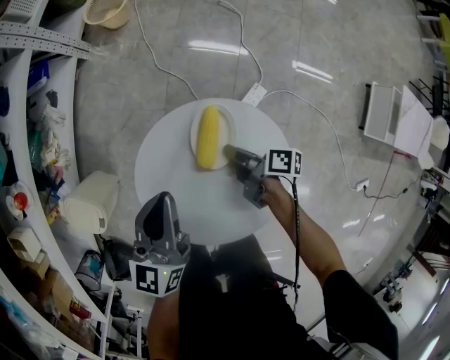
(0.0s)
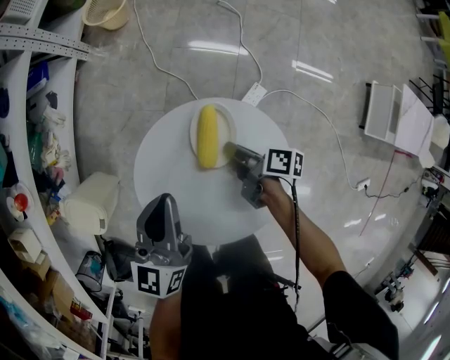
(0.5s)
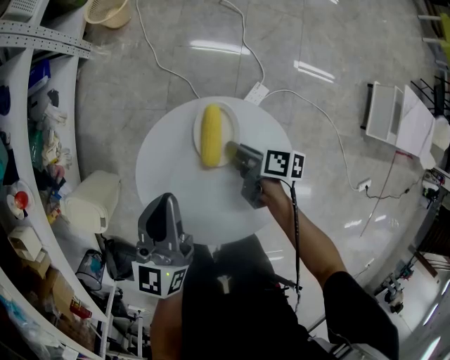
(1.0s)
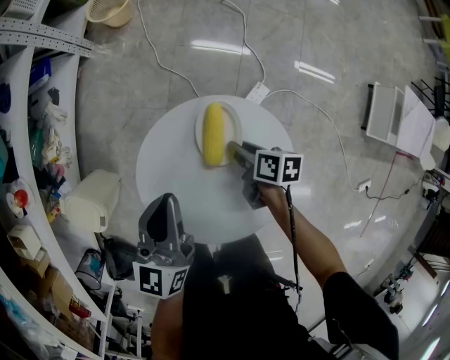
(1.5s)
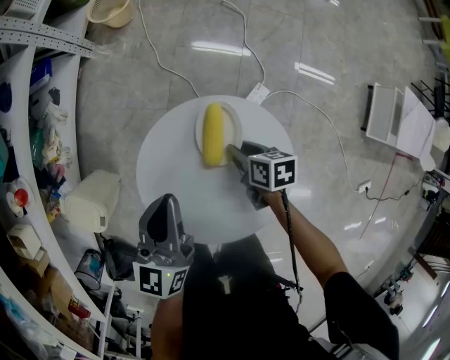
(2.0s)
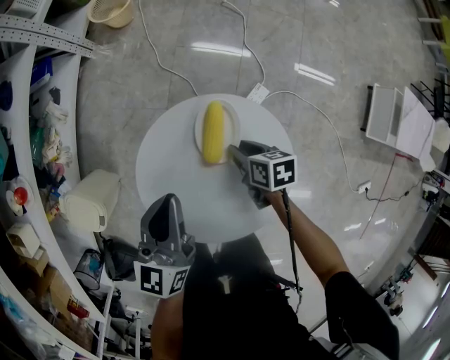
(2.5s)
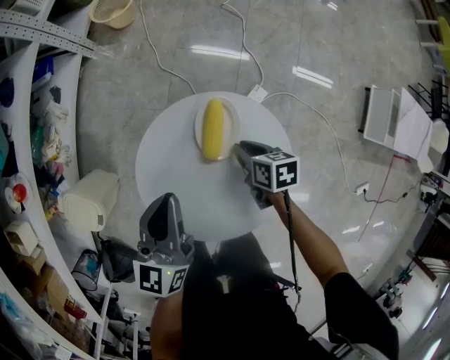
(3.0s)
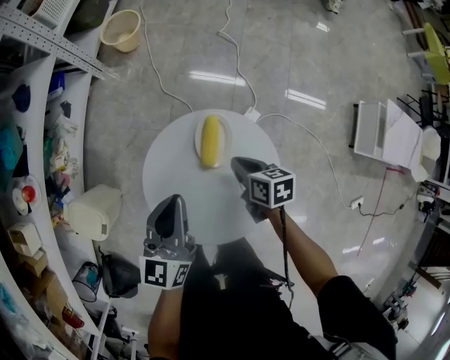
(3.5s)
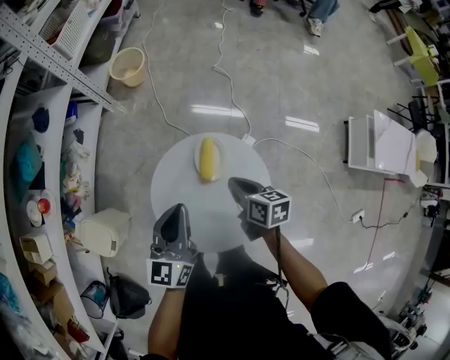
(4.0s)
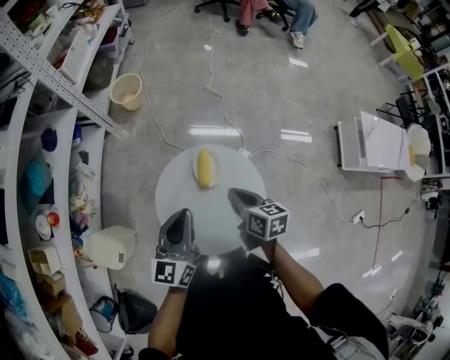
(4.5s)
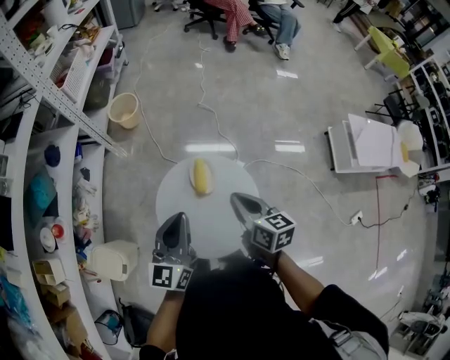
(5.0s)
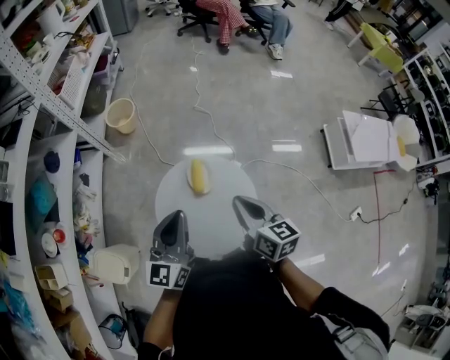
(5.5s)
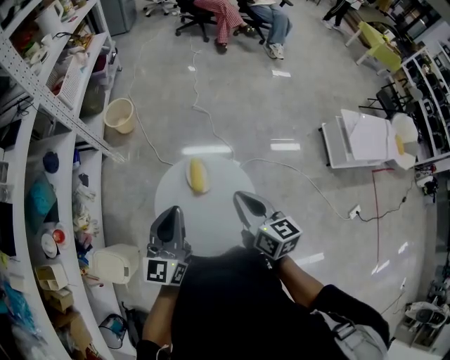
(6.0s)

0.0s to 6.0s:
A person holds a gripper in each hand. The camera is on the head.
2.0s to 4.0s: The left gripper heads upward, covering some 10 cm.
4.0s to 6.0s: The left gripper is displaced upward by approximately 10 cm.

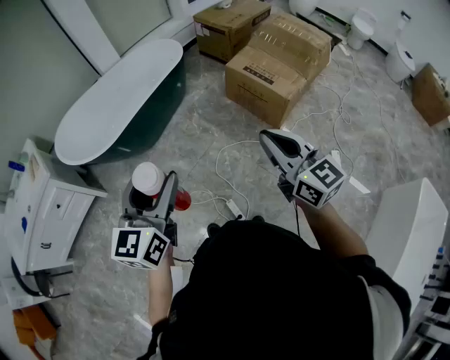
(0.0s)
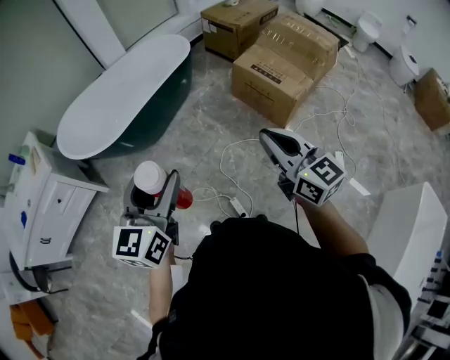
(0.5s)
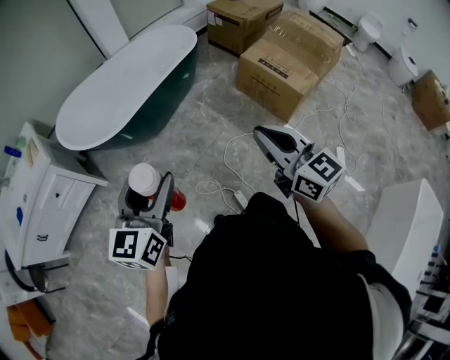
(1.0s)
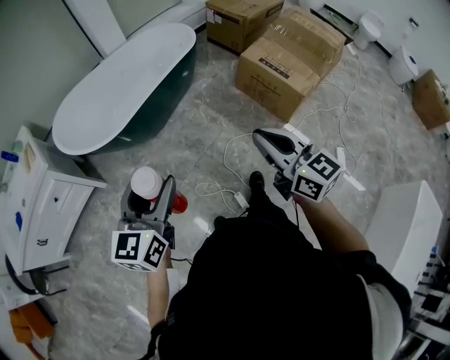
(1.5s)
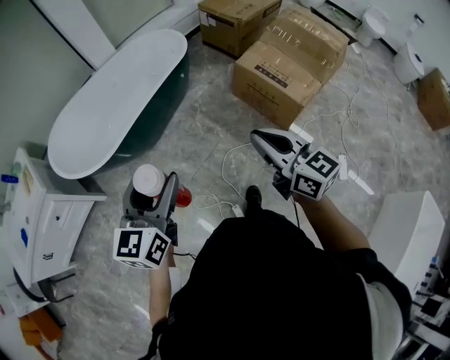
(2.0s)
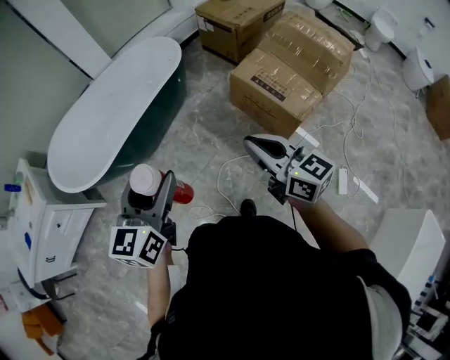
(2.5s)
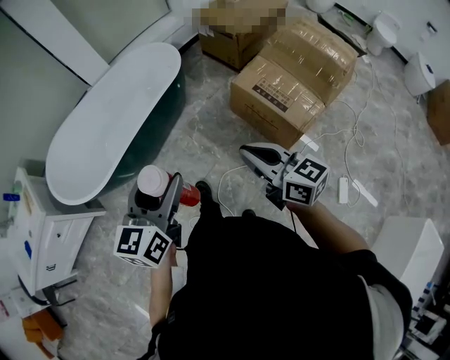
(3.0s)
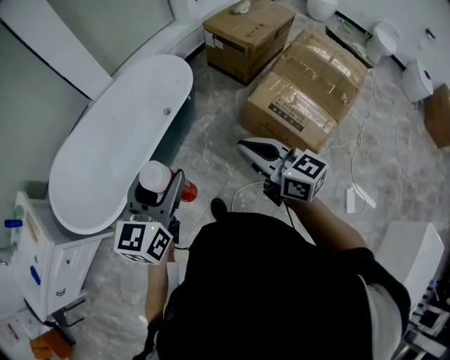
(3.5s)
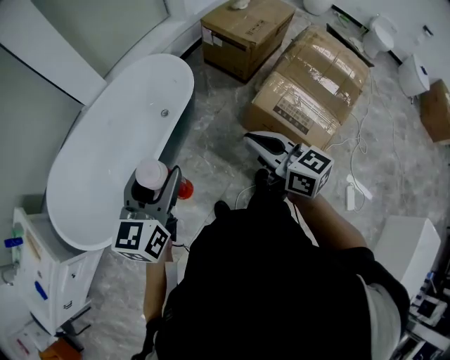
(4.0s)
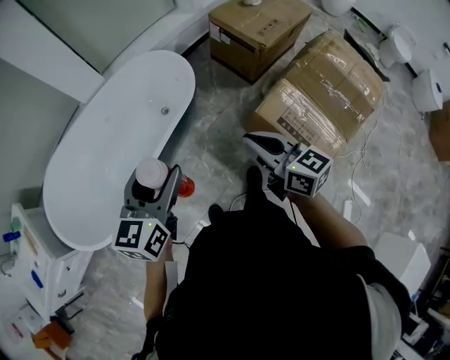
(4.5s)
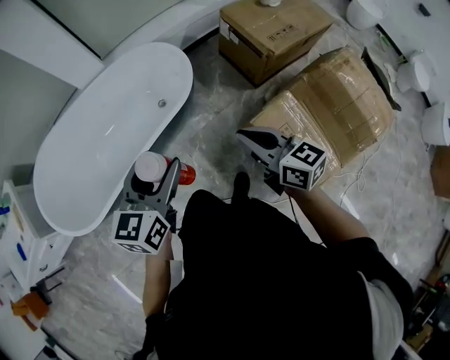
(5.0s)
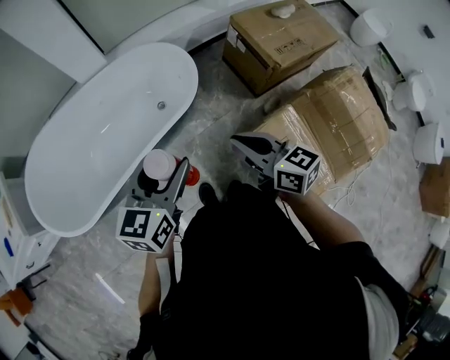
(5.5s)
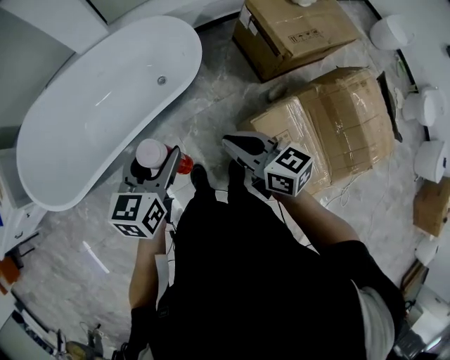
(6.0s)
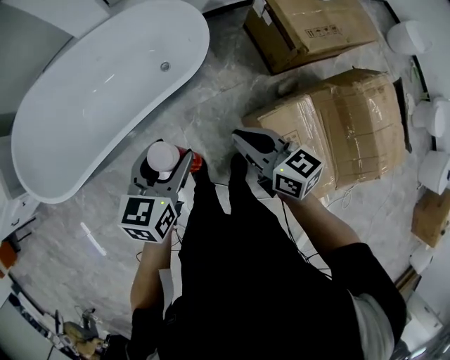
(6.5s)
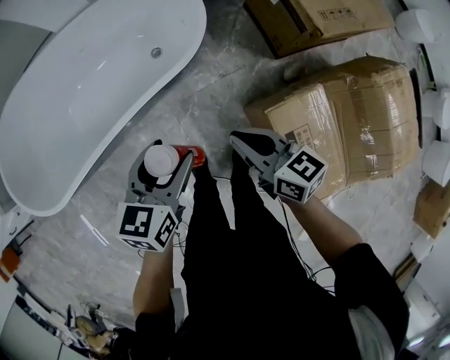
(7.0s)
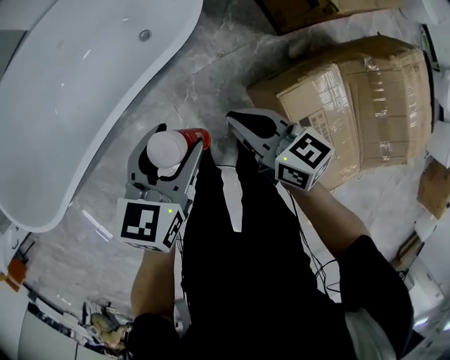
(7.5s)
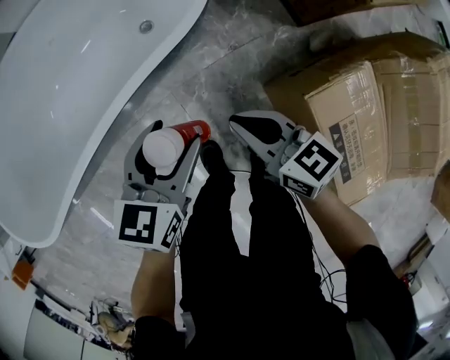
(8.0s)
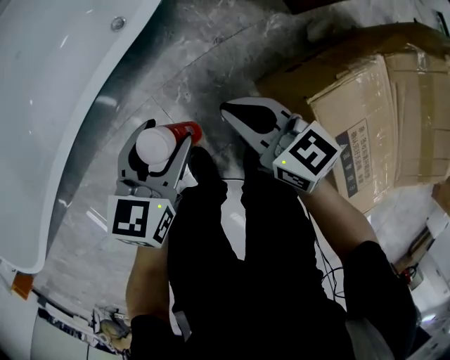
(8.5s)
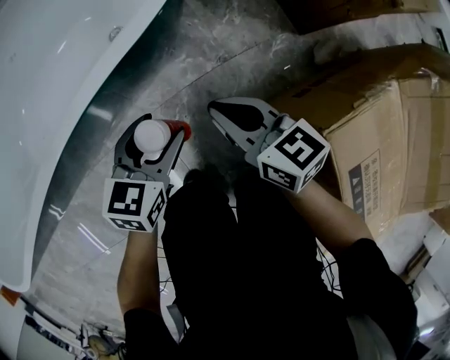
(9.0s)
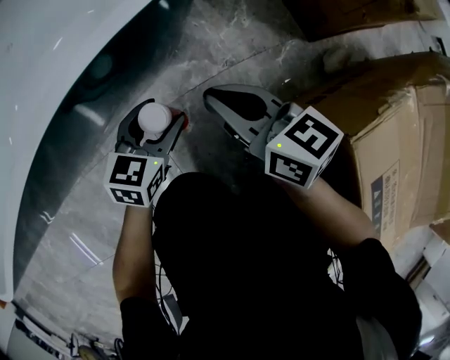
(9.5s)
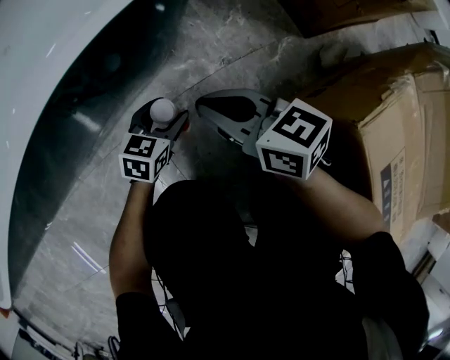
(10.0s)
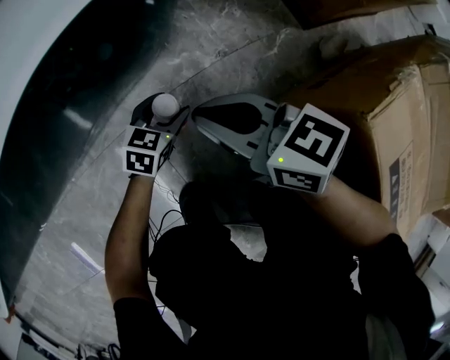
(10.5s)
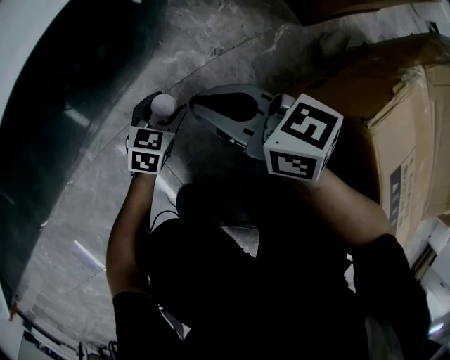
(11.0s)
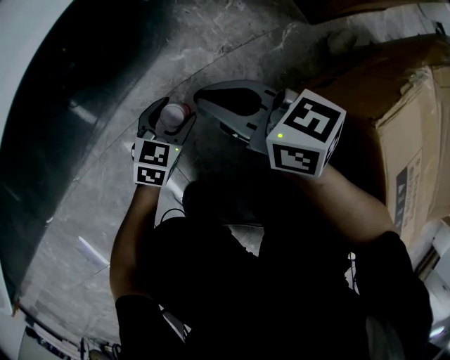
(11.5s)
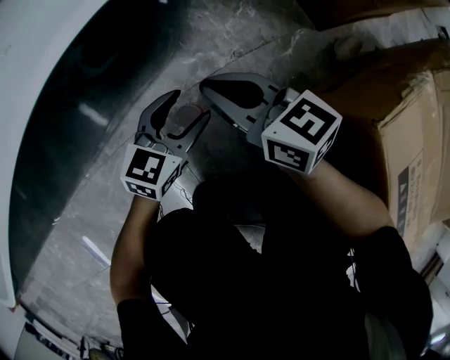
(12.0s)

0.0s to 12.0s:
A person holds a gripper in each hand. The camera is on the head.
0.0s to 2.0s: Both grippers travel together forward, some 20 cm.
2.0s to 4.0s: Both grippers travel together forward, roughly 40 cm.
4.0s to 6.0s: The left gripper heads to the right, forward and downward, covering some 30 cm, and swivels approximately 30 degrees; the right gripper heads forward, to the right and downward, covering about 25 cm, and turns by roughly 30 degrees.
6.0s to 8.0s: Both grippers travel together downward, about 35 cm.
8.0s to 10.0s: The left gripper moves downward, approximately 40 cm. Meanwhile the right gripper shifts approximately 25 cm downward.
10.0s to 12.0s: The left gripper heads upward, covering roughly 5 cm.

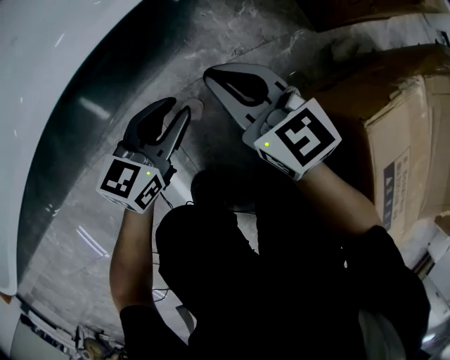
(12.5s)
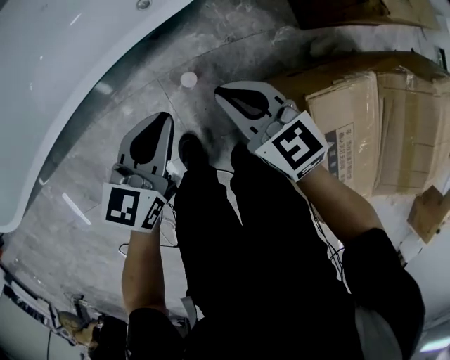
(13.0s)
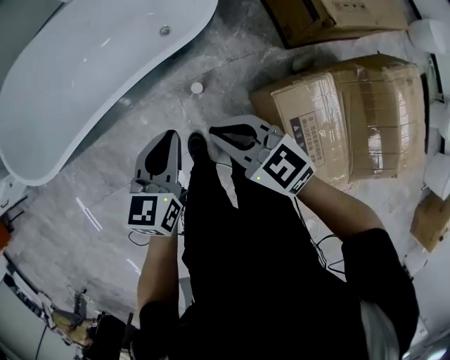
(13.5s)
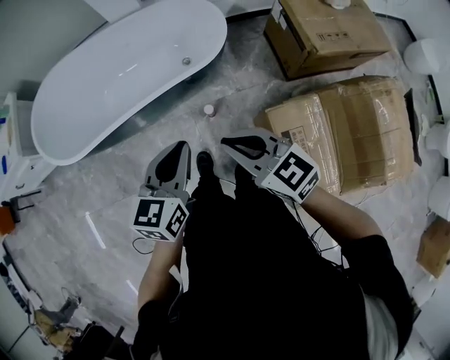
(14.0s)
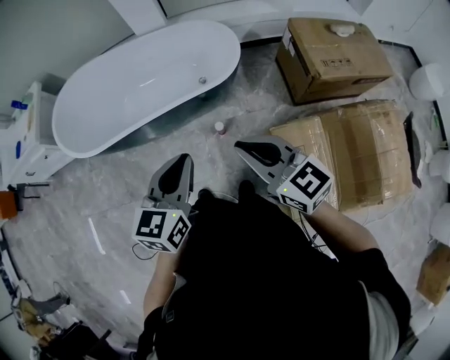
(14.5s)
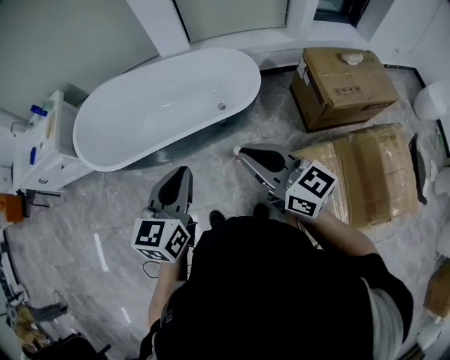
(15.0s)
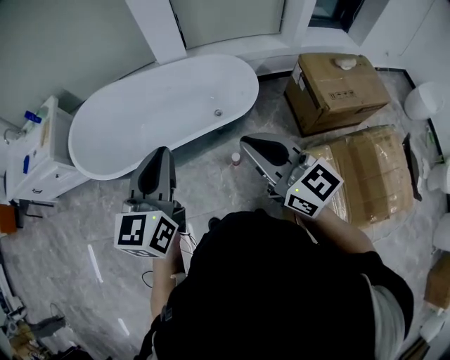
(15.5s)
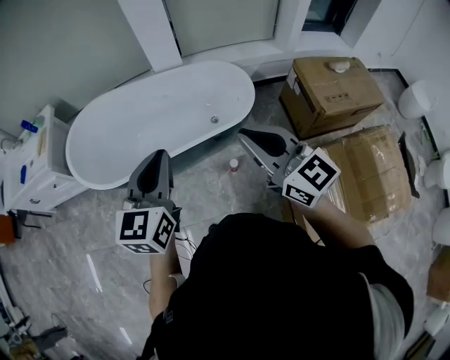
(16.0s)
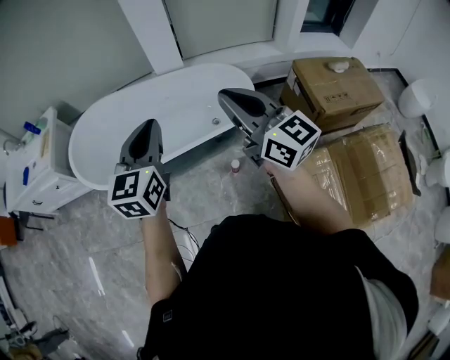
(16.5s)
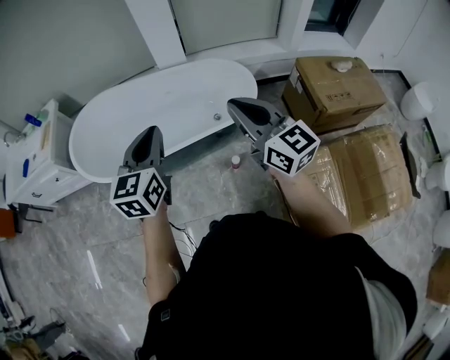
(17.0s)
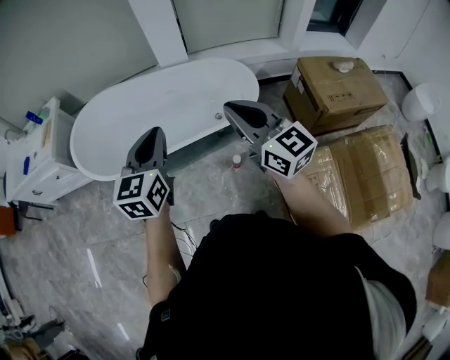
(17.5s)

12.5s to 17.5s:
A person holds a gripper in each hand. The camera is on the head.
12.5s to 15.0s: Both grippers travel together upward, some 70 cm. The right gripper changes its angle by some 30 degrees. Meanwhile the left gripper turns by about 40 degrees, and closes up.
15.0s to 17.5s: Both grippers move forward and to the left, approximately 15 cm.

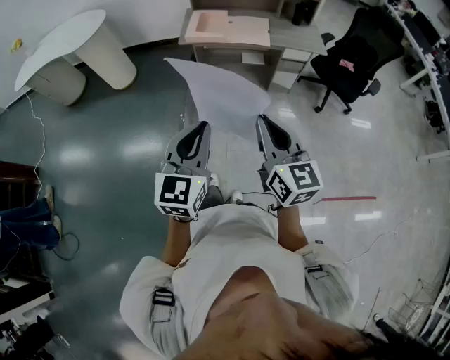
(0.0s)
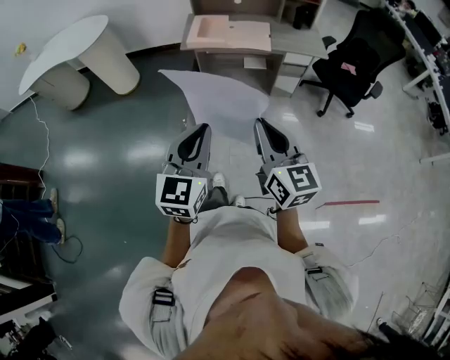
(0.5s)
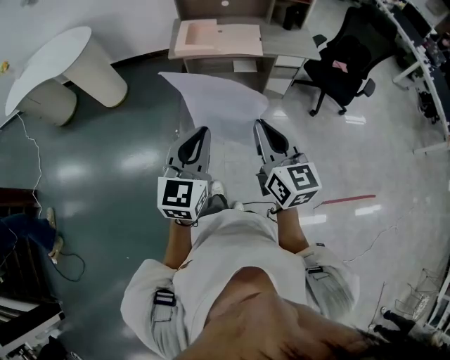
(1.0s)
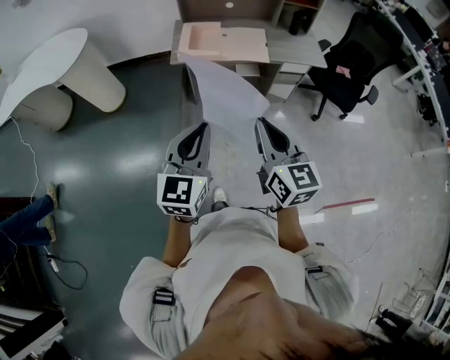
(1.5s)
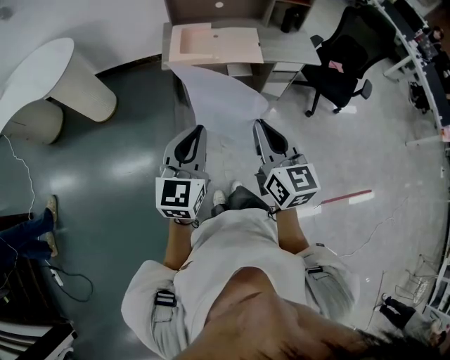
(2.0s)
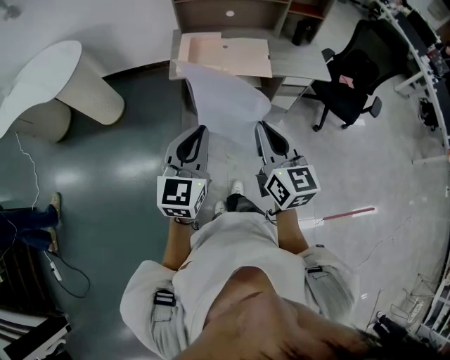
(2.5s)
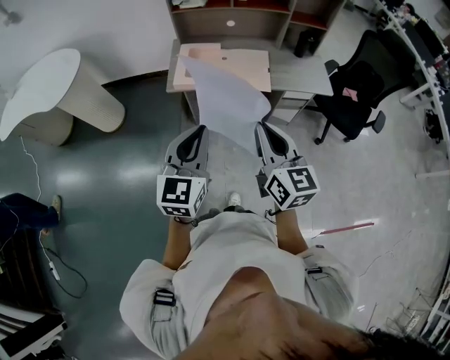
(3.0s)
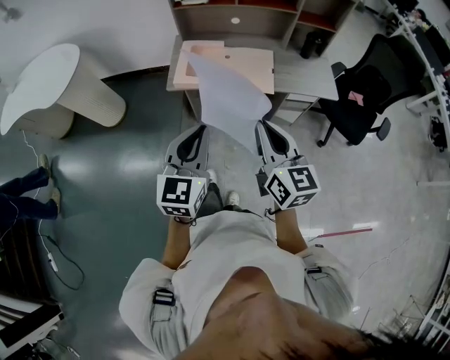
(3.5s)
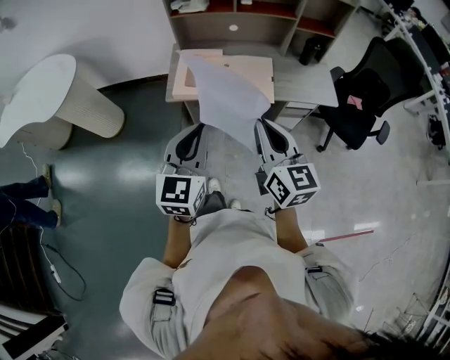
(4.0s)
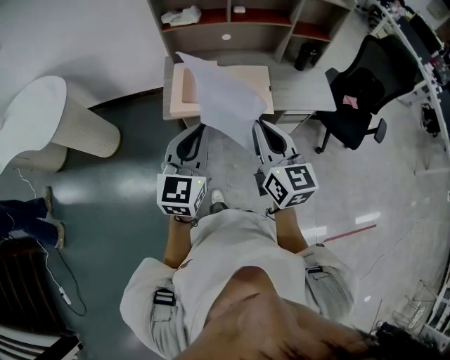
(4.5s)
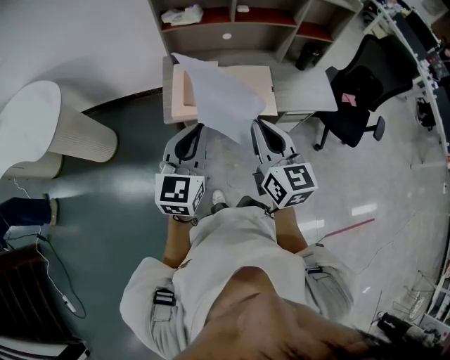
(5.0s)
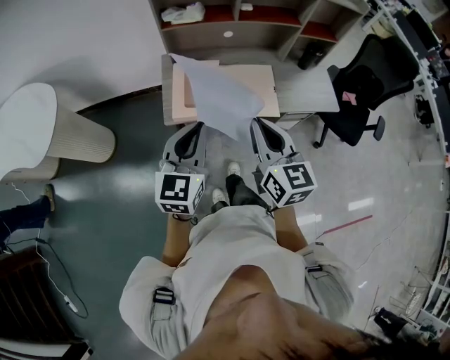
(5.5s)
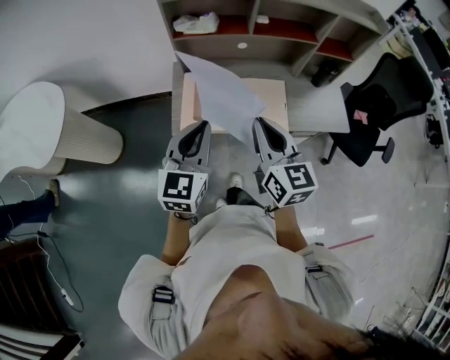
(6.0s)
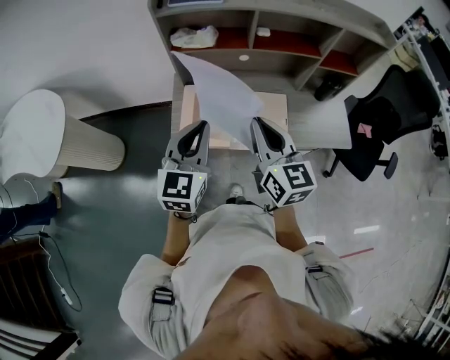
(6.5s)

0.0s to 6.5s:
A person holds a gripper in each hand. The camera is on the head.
0.0s to 2.0s: Both grippers move forward, approximately 25 cm.
2.0s to 4.5s: The grippers both shift forward by about 30 cm.
4.5s to 6.5s: Both grippers move forward, roughly 20 cm.
